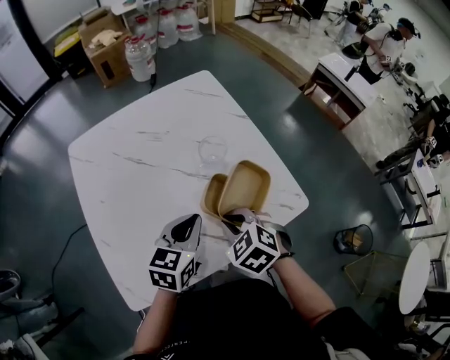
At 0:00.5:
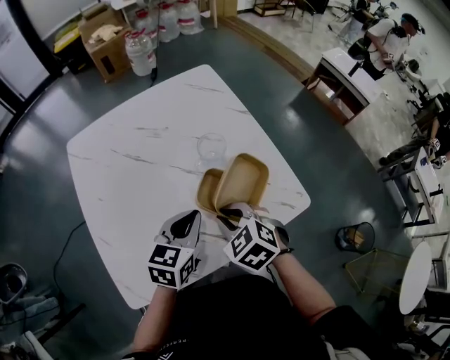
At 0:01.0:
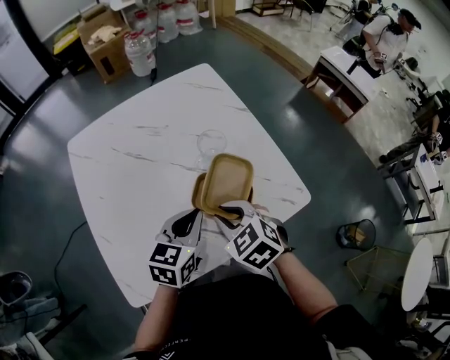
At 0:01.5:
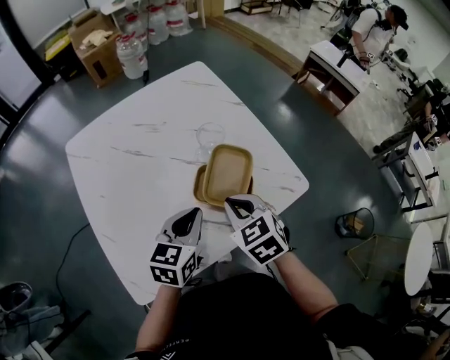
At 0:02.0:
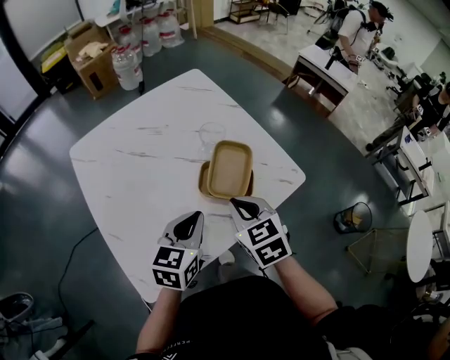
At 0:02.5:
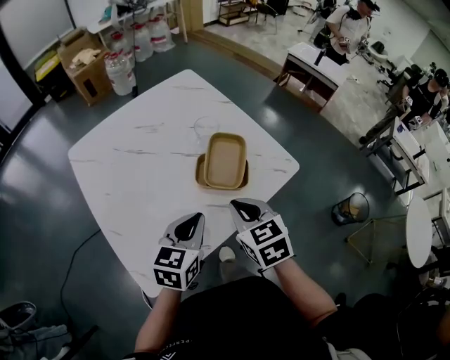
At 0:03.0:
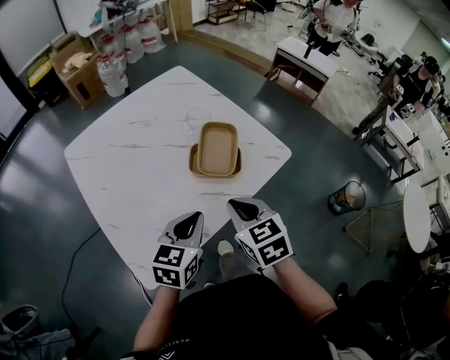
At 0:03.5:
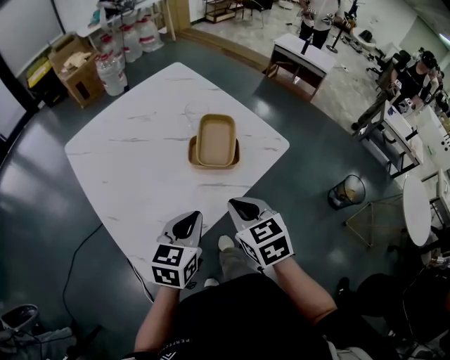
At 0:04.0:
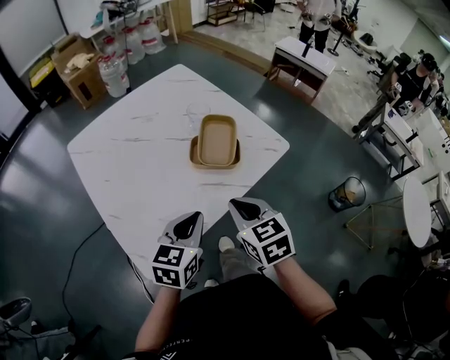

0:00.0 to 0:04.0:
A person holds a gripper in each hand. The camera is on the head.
0:00.0 to 0:02.0: The left gripper is displaced backward by some 5 cm. Meanwhile the right gripper heads upward, covering about 5 cm, and changes its angle by some 30 degrees.
0:02.0 to 0:04.0: The two grippers go about 10 cm backward.

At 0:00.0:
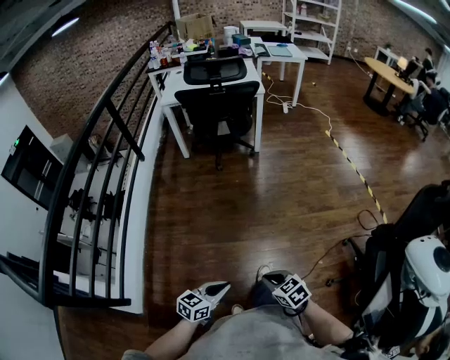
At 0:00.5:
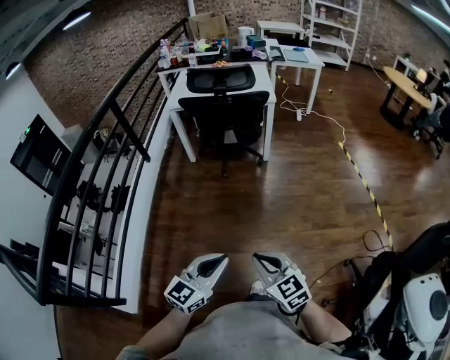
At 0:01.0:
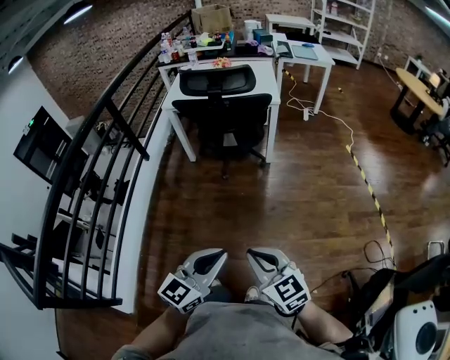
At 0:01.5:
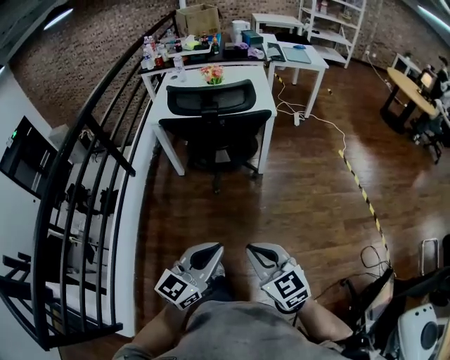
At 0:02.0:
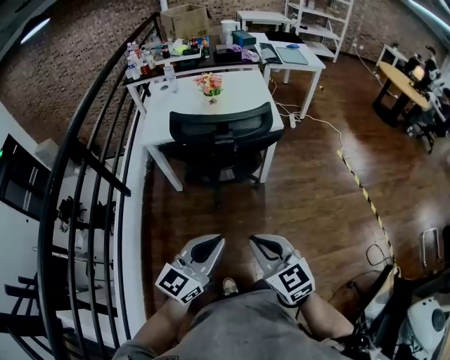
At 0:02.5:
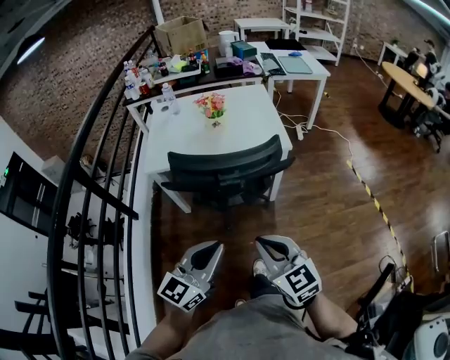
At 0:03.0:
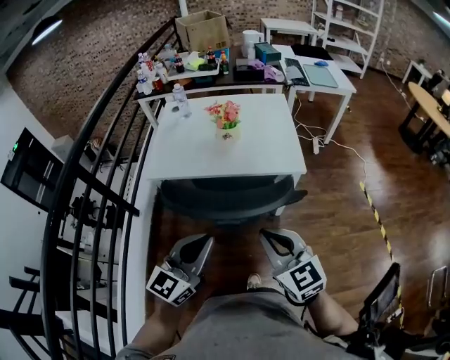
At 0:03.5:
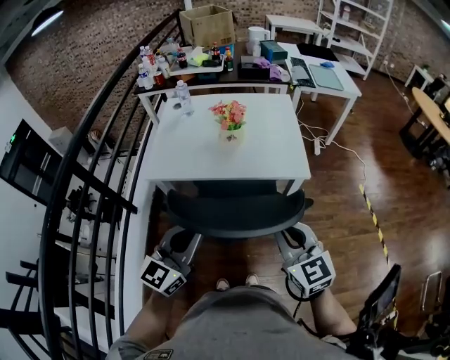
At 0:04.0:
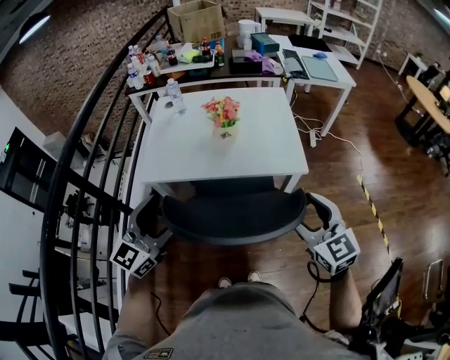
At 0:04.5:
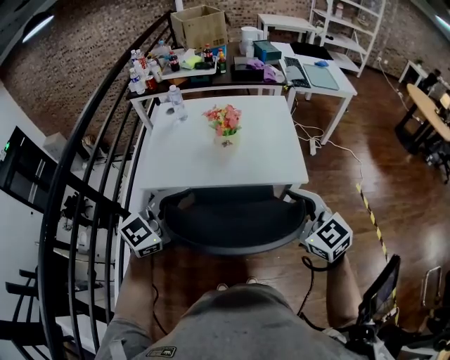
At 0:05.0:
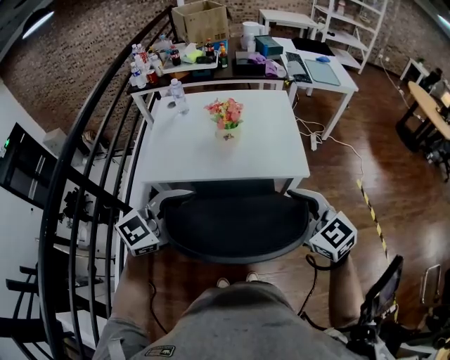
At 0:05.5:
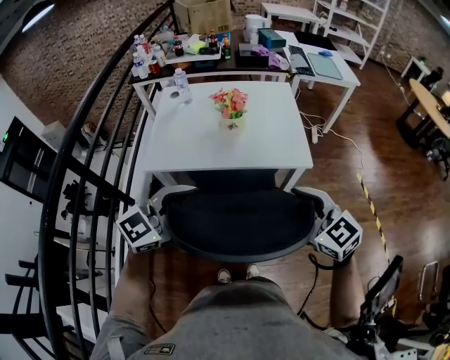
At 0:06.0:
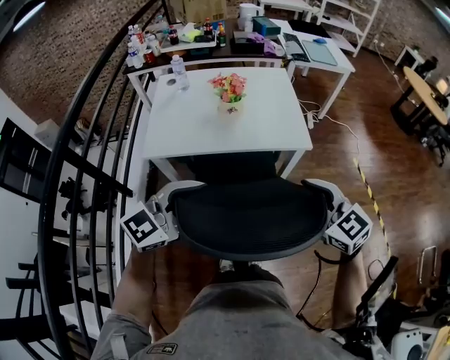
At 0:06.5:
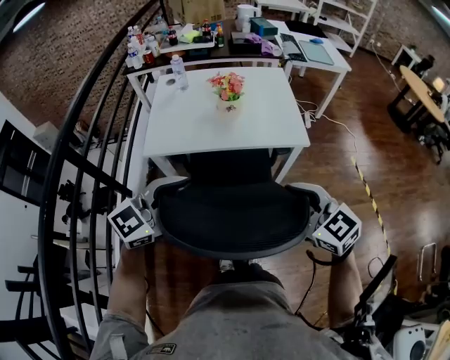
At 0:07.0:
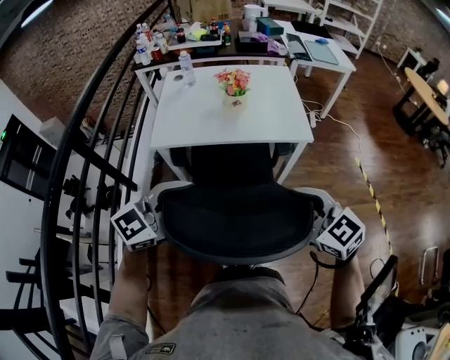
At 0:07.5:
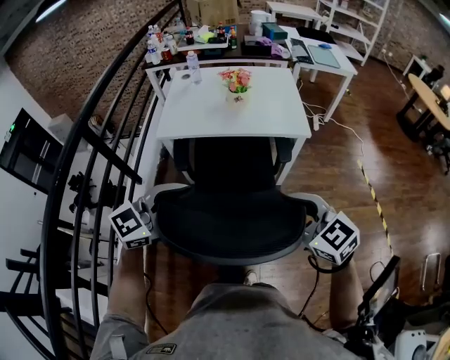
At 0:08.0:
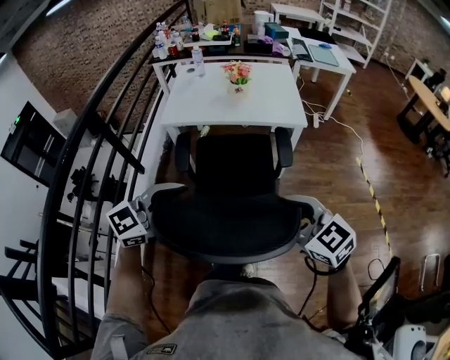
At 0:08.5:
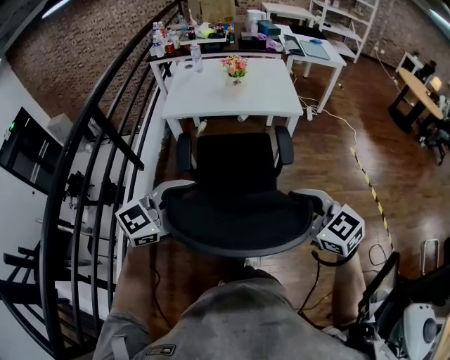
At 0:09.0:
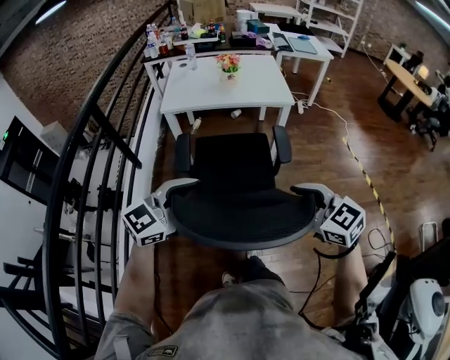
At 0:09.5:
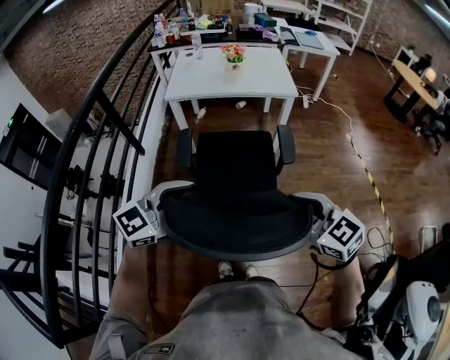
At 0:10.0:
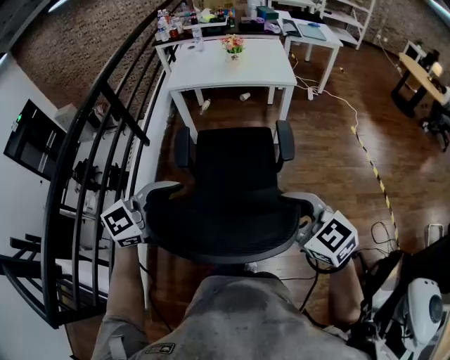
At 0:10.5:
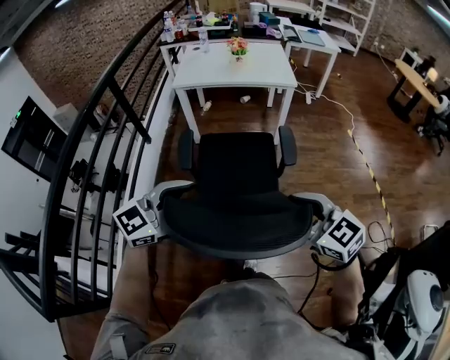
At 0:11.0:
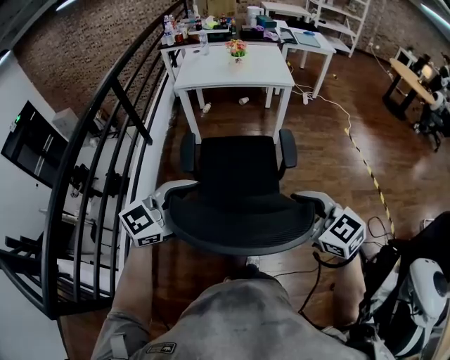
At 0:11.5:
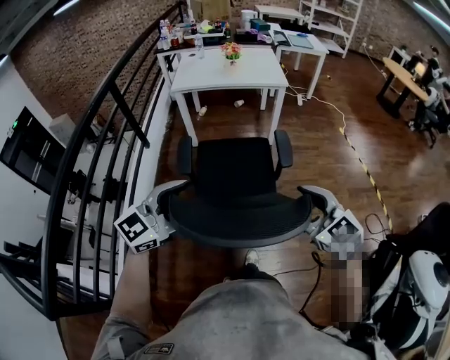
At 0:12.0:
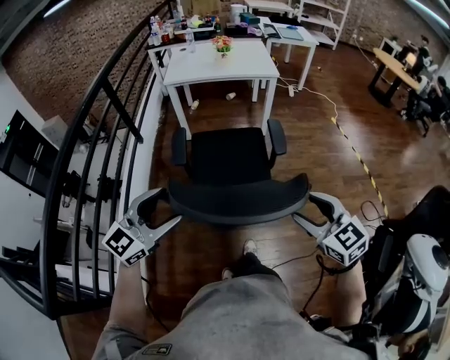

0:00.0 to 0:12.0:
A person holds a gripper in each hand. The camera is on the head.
0:00.0 to 0:02.0: Both grippers are carried forward, some 60 cm. The right gripper turns by approximately 30 degrees, while the left gripper swivels some 30 degrees.
0:02.0 to 0:04.0: The right gripper travels forward by some 35 cm, and opens, while the left gripper shifts some 35 cm forward and to the left, and opens its fingers.
0:04.0 to 0:06.0: The right gripper heads backward, covering some 5 cm; the left gripper moves to the right and backward, about 10 cm, and rotates some 30 degrees.
0:06.0 to 0:08.0: Both grippers move backward, roughly 25 cm.
0:08.0 to 0:10.0: The two grippers go approximately 25 cm backward.
0:10.0 to 0:12.0: Both grippers travel together backward, some 15 cm.

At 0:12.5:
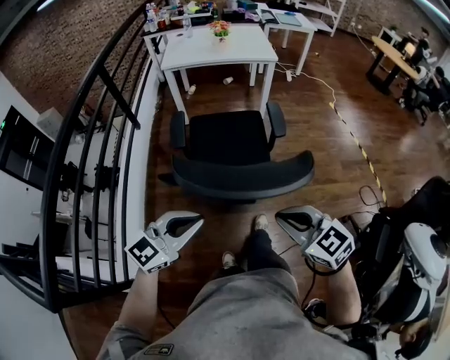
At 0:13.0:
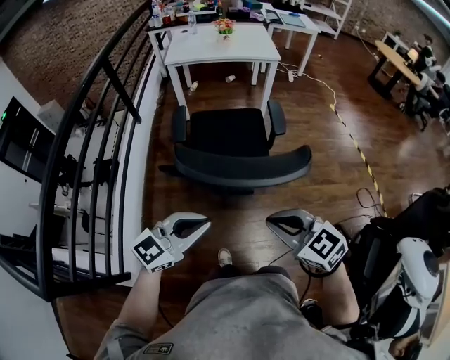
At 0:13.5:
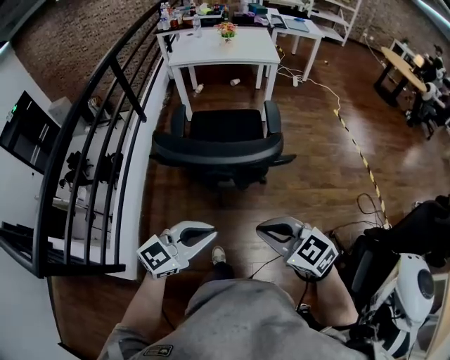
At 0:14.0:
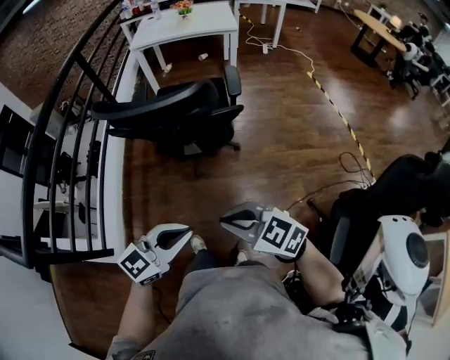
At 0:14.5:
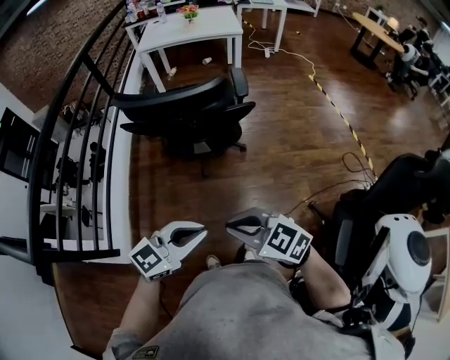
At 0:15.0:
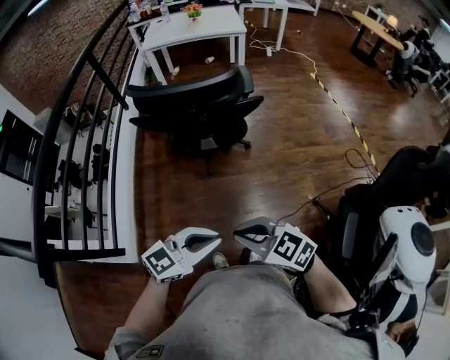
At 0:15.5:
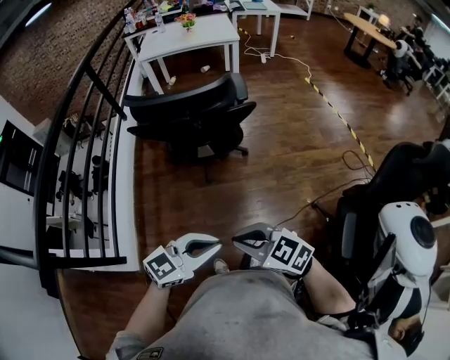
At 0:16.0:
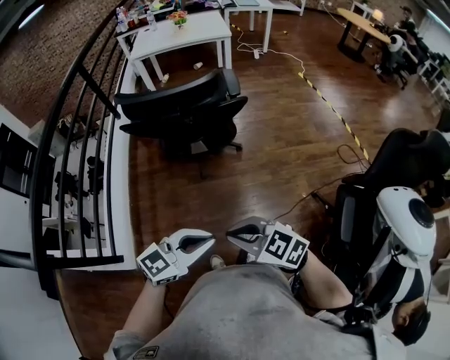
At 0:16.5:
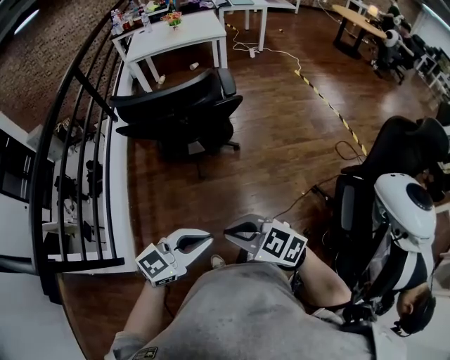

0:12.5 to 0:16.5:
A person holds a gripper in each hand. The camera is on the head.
0:12.5 to 0:14.5: The left gripper ends up some 30 cm from where it was. Meanwhile the right gripper moves about 25 cm.
0:14.5 to 0:16.5: The right gripper shifts by roughly 5 cm. The left gripper changes place by about 5 cm.

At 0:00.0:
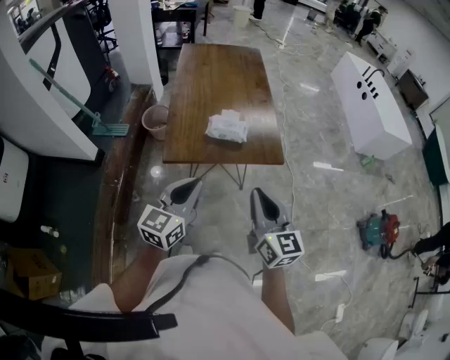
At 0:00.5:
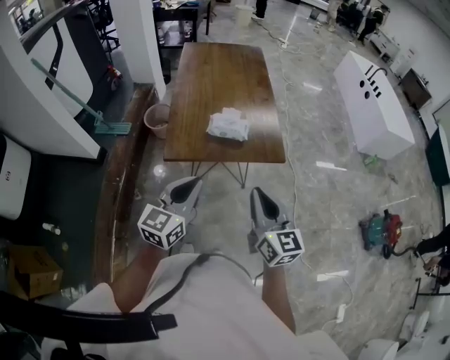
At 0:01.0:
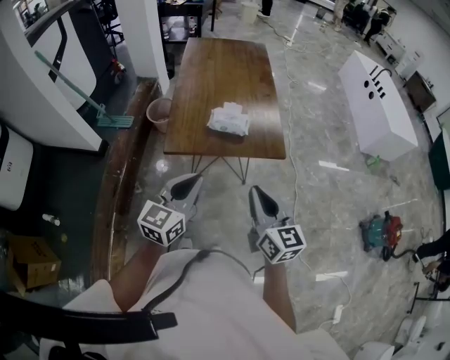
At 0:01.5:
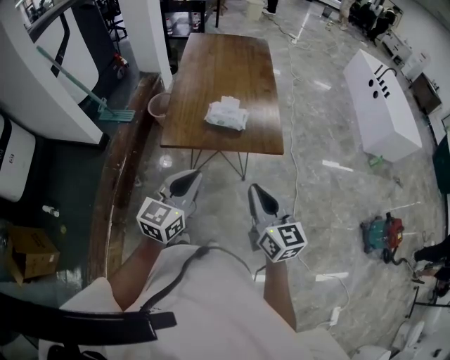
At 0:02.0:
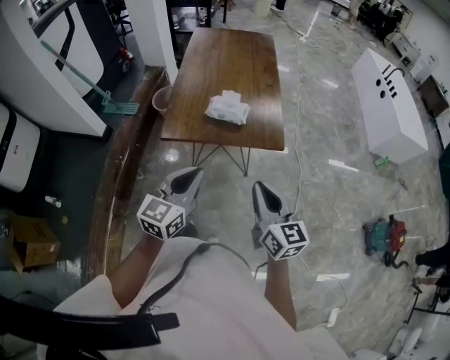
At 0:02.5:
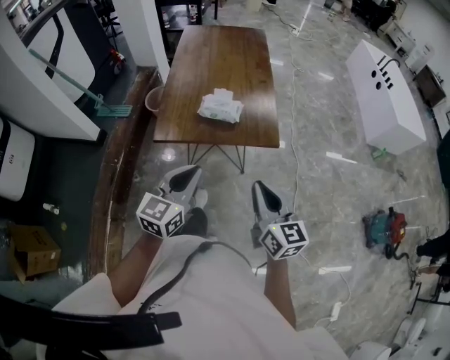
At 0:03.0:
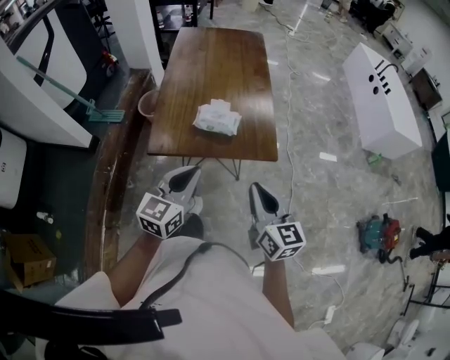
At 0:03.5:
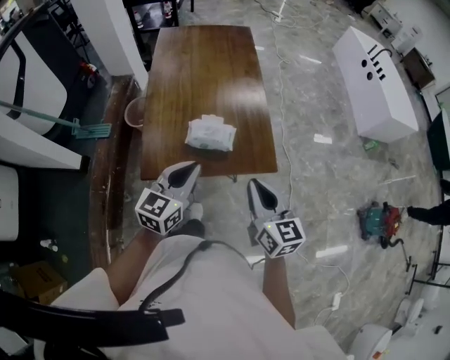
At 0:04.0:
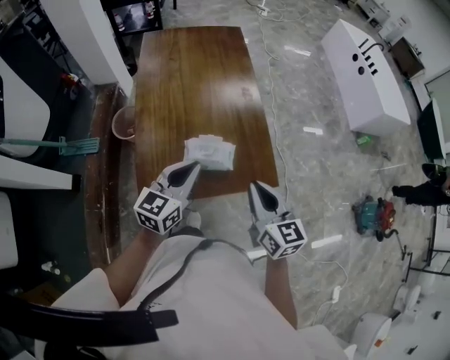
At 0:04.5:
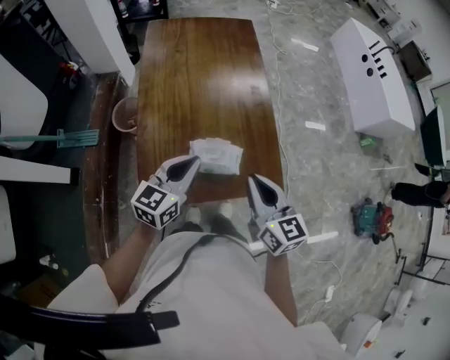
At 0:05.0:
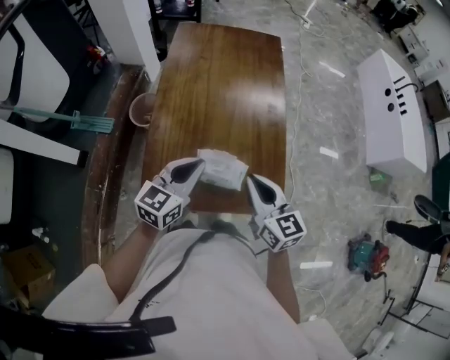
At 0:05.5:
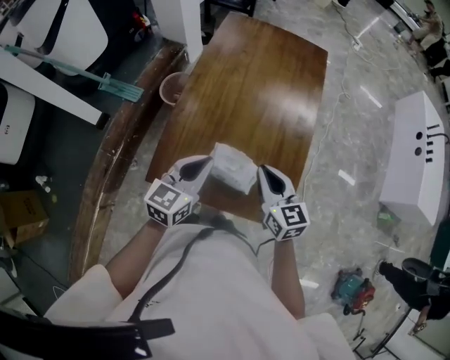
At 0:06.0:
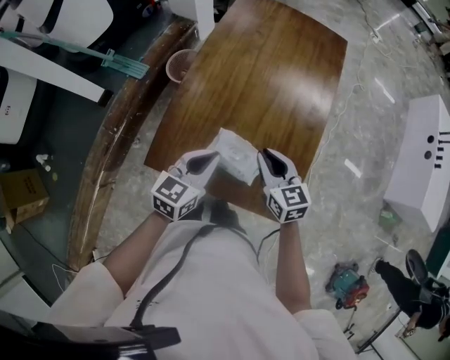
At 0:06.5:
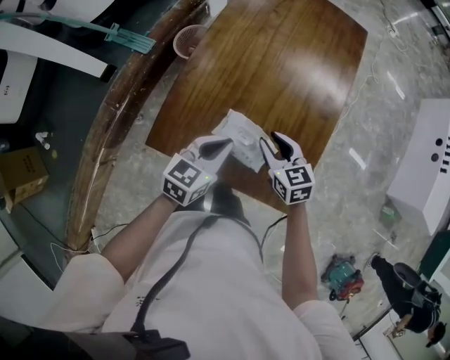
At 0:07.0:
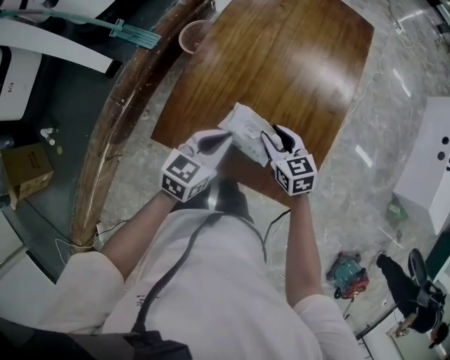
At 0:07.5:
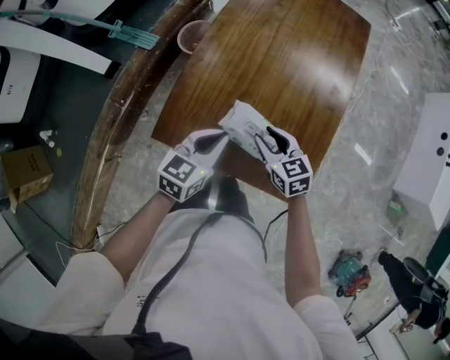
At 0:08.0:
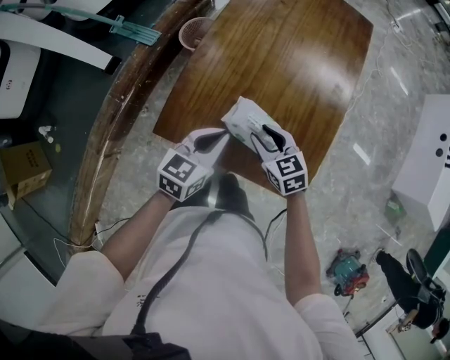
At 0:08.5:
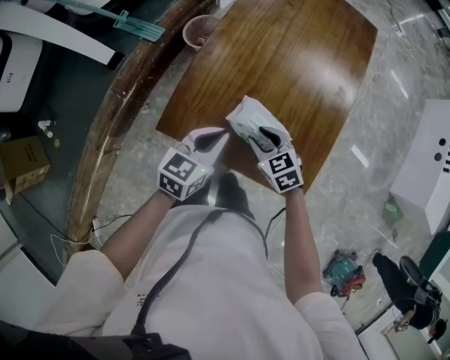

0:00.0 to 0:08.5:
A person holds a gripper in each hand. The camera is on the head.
0:00.0 to 0:02.0: Both grippers move to the right, approximately 10 cm.
0:02.0 to 0:04.0: Both grippers move forward, roughly 30 cm.
0:04.0 to 0:06.5: The right gripper changes place by roughly 30 cm, swivels about 50 degrees, and opens its fingers. The left gripper moves downward, some 10 cm, and changes its angle by roughly 30 degrees.
0:06.5 to 0:08.5: The grippers both shift to the left by roughly 5 cm.
